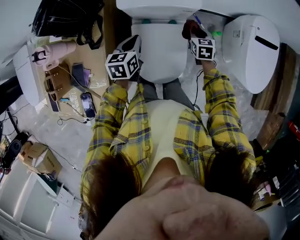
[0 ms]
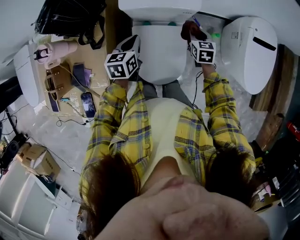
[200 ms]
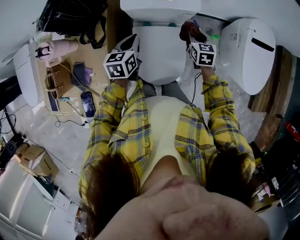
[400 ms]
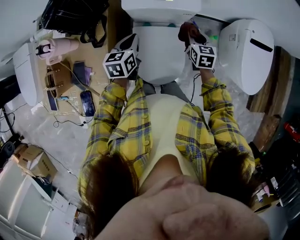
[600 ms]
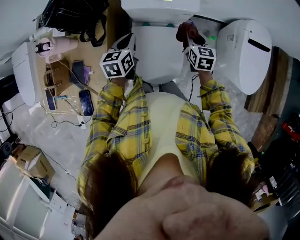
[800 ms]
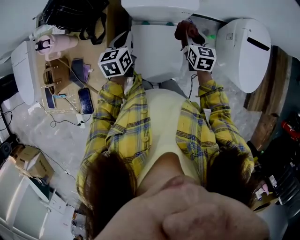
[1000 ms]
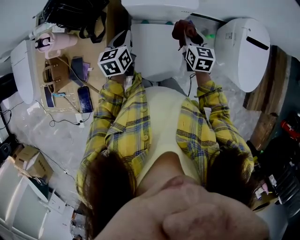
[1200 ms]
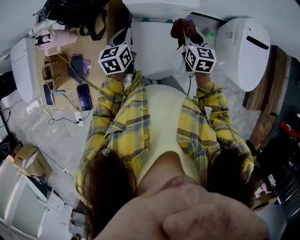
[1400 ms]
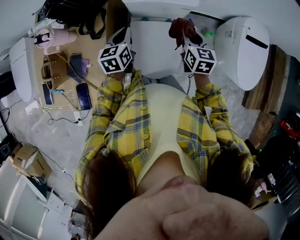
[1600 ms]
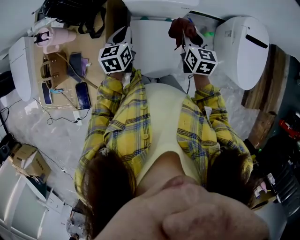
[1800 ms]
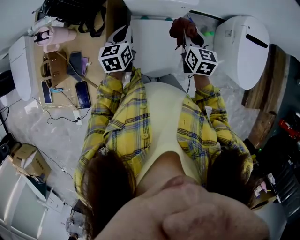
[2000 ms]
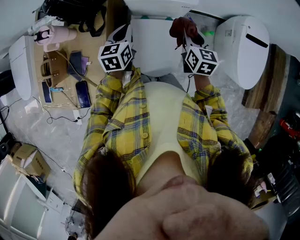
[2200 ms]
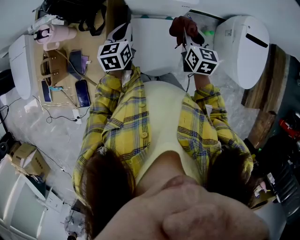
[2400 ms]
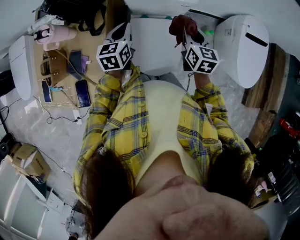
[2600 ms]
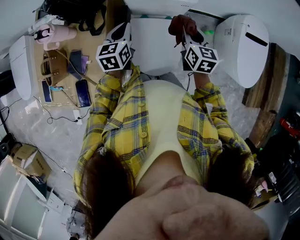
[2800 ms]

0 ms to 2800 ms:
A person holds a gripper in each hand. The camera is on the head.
0 ms to 1400 ms: The right gripper heads upward and backward, covering approximately 15 cm. Meanwhile the left gripper moves upward, approximately 5 cm.
1400 ms to 2800 ms: There are only small adjustments of the grippers.

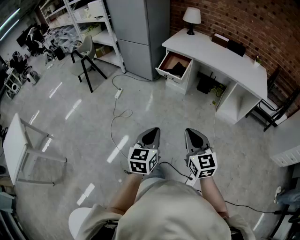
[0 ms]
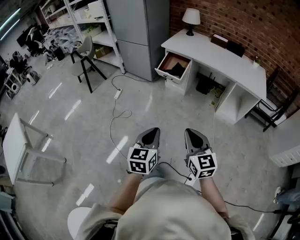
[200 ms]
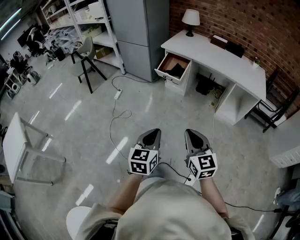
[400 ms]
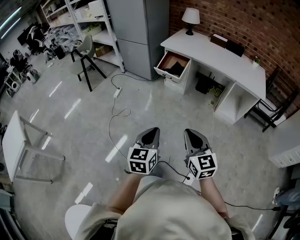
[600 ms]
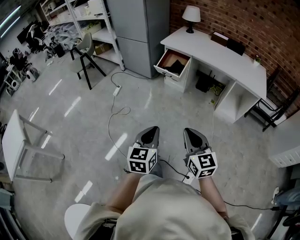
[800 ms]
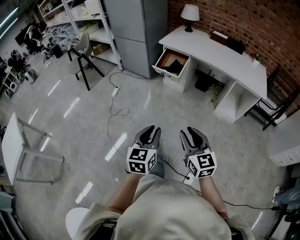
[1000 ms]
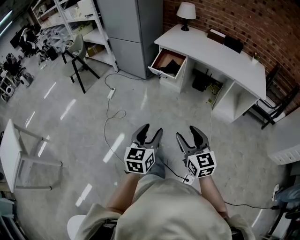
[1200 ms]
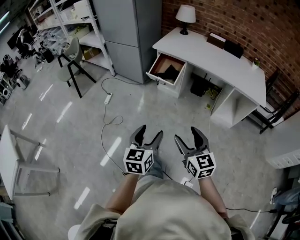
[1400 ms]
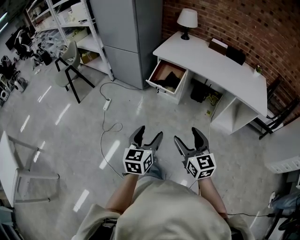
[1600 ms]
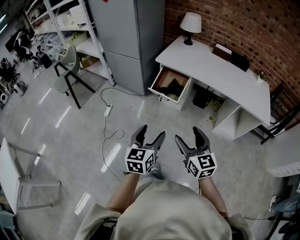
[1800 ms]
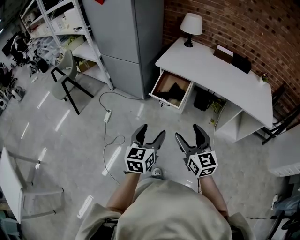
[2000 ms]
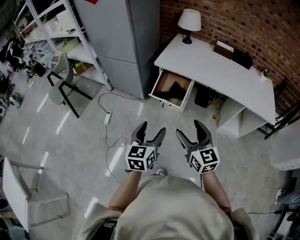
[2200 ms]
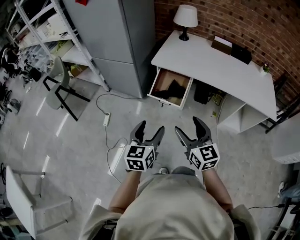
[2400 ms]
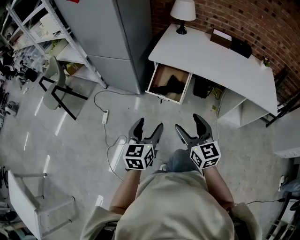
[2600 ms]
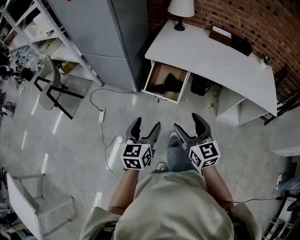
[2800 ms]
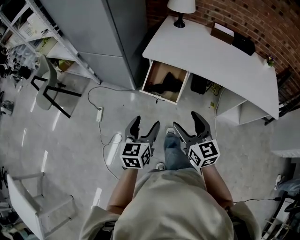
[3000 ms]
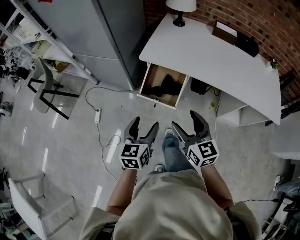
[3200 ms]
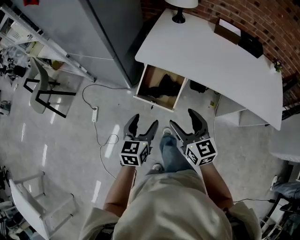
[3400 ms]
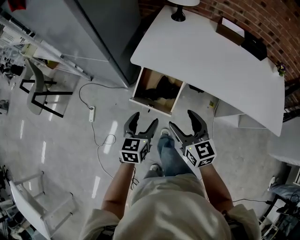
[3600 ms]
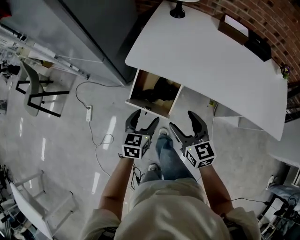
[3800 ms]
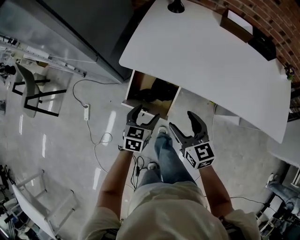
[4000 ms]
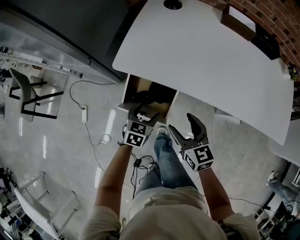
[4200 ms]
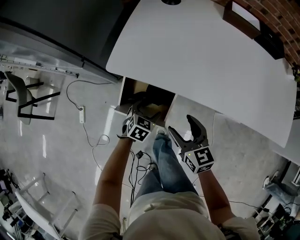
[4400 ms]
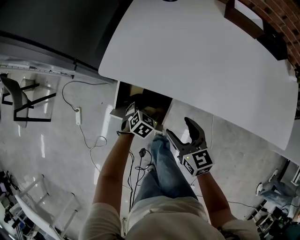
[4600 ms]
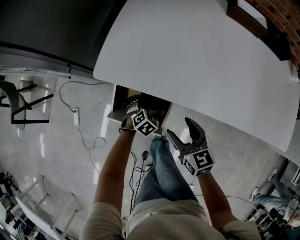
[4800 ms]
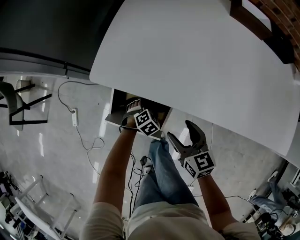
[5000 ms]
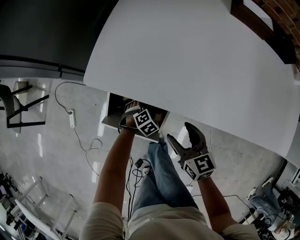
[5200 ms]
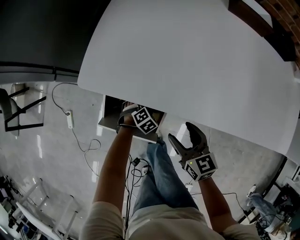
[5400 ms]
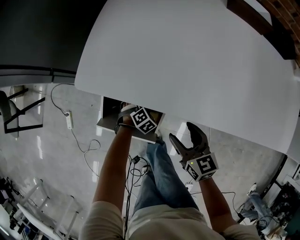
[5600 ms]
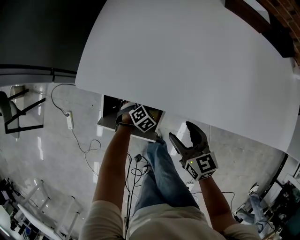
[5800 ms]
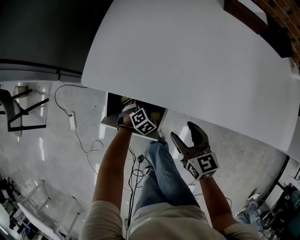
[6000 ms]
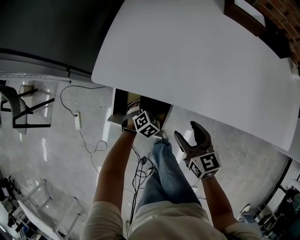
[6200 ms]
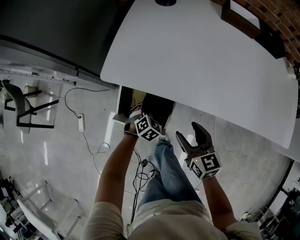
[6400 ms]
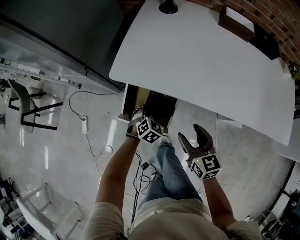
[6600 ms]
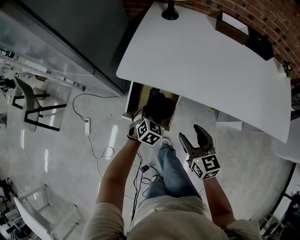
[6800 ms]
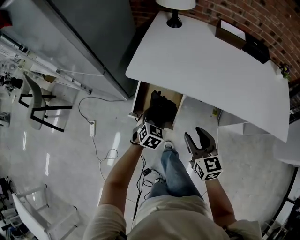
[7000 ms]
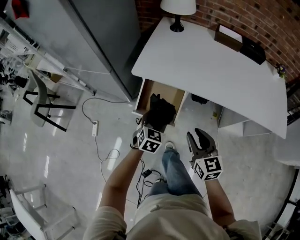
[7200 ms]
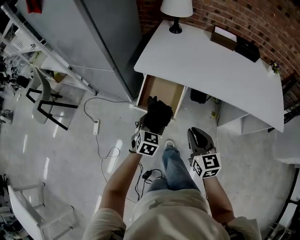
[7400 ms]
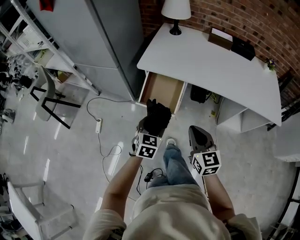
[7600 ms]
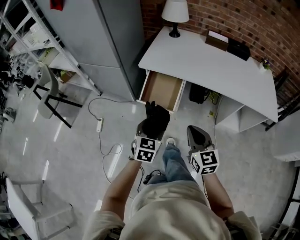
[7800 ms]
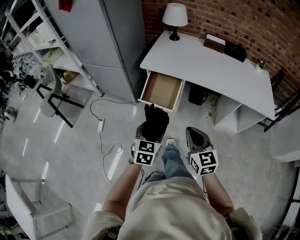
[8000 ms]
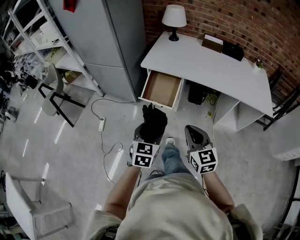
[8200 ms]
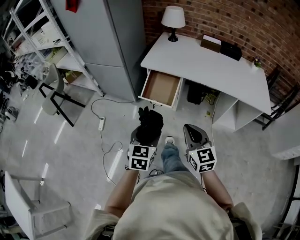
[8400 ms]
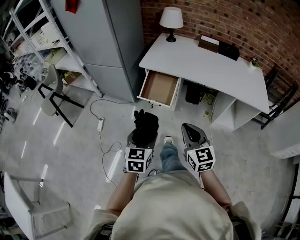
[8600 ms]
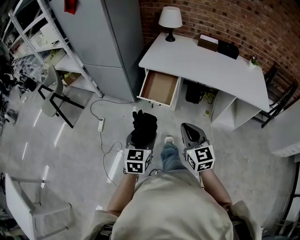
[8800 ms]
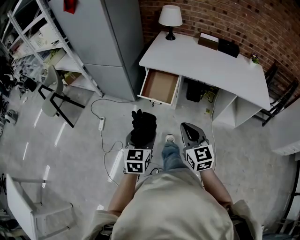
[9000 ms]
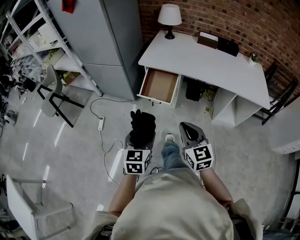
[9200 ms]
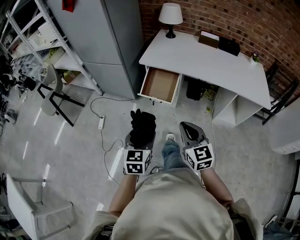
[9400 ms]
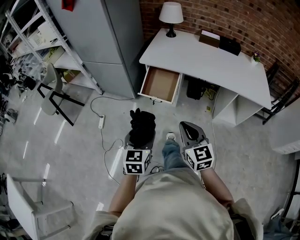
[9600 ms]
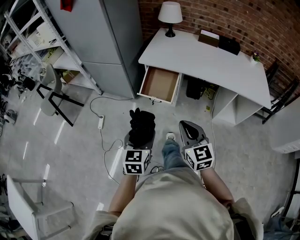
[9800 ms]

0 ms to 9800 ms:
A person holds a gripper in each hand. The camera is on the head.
0 ms to 1400 ms: Both grippers move forward, some 10 cm. The left gripper opens. Meanwhile the right gripper opens up.
1400 ms to 2800 ms: The grippers both shift forward by roughly 35 cm.
2800 ms to 4200 ms: The left gripper goes some 40 cm forward, downward and to the right, and turns by approximately 30 degrees. The right gripper heads forward and downward, covering about 35 cm.
4200 ms to 5600 ms: The left gripper goes roughly 25 cm downward, and changes its angle by approximately 50 degrees, while the right gripper goes some 15 cm downward and forward.
5600 ms to 7000 ms: The left gripper moves upward, about 30 cm, and swivels roughly 40 degrees, while the right gripper moves upward and backward, approximately 20 cm.
7000 ms to 8400 ms: Both grippers move backward and upward, roughly 40 cm. The right gripper closes its fingers. Meanwhile the left gripper rotates some 30 degrees.
8400 ms to 9800 ms: There are only small adjustments of the grippers.

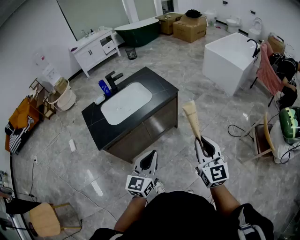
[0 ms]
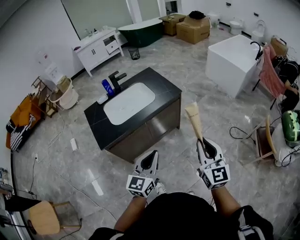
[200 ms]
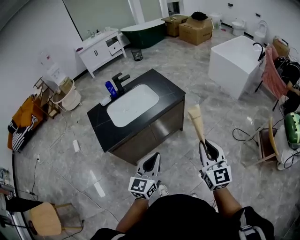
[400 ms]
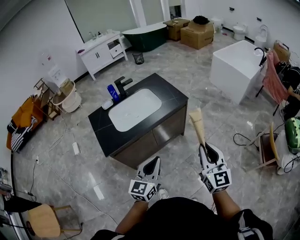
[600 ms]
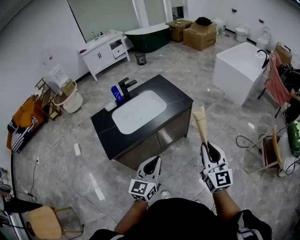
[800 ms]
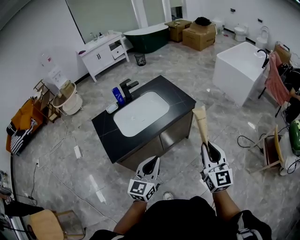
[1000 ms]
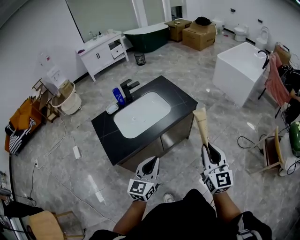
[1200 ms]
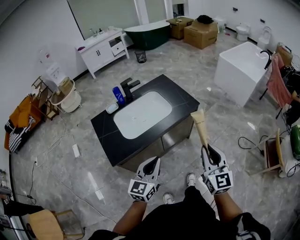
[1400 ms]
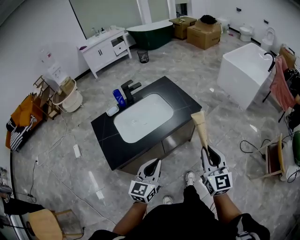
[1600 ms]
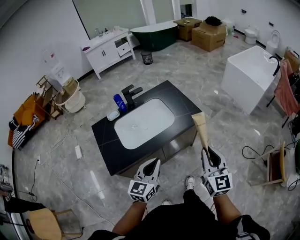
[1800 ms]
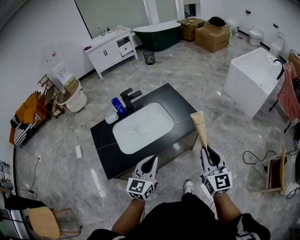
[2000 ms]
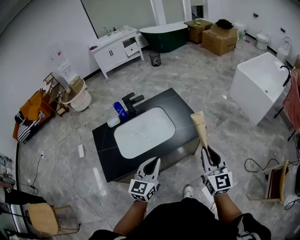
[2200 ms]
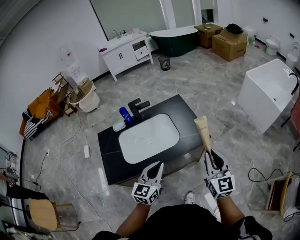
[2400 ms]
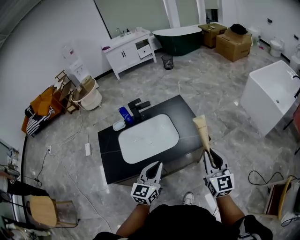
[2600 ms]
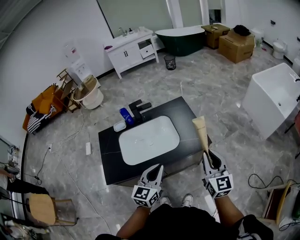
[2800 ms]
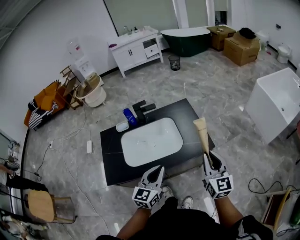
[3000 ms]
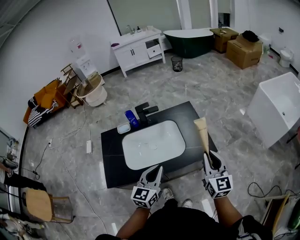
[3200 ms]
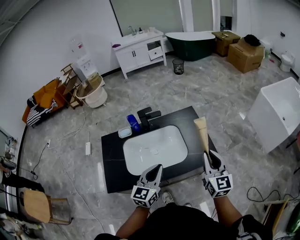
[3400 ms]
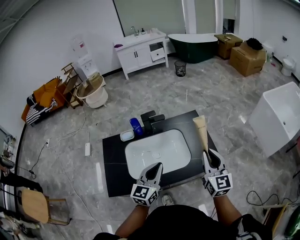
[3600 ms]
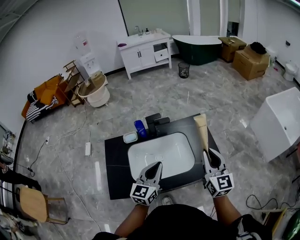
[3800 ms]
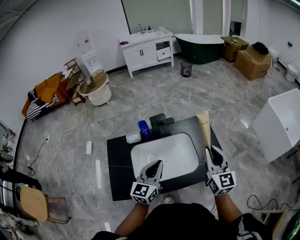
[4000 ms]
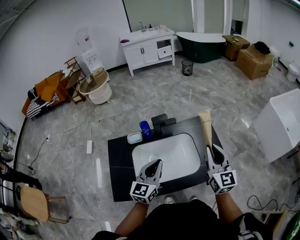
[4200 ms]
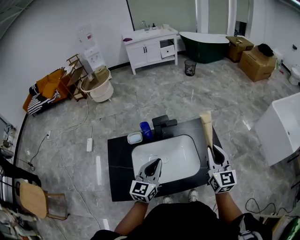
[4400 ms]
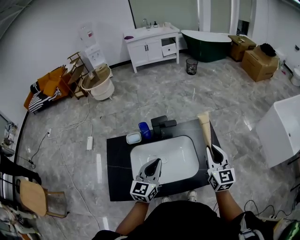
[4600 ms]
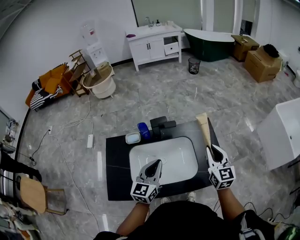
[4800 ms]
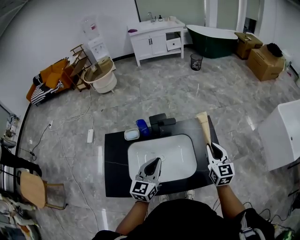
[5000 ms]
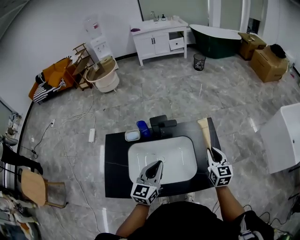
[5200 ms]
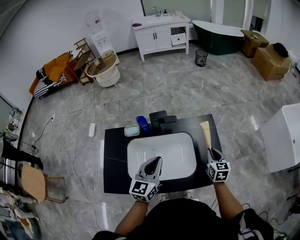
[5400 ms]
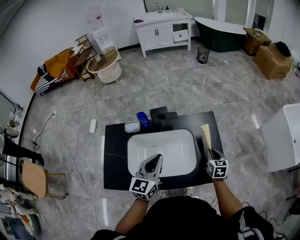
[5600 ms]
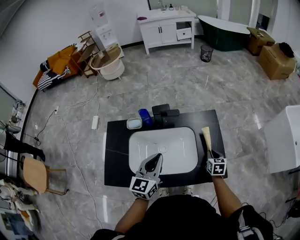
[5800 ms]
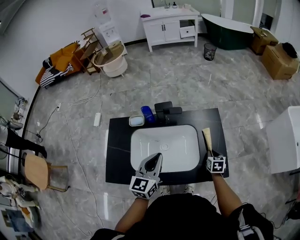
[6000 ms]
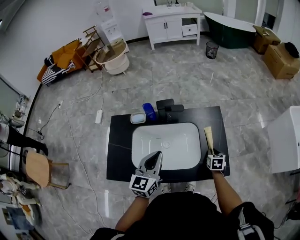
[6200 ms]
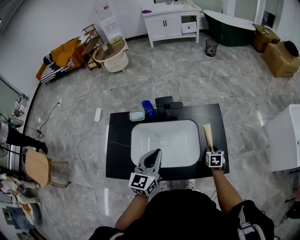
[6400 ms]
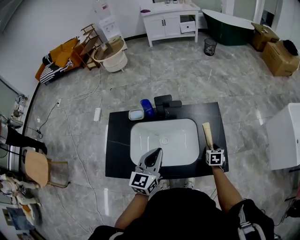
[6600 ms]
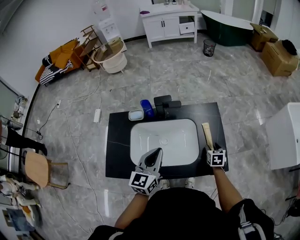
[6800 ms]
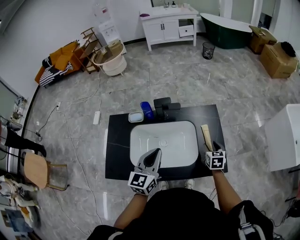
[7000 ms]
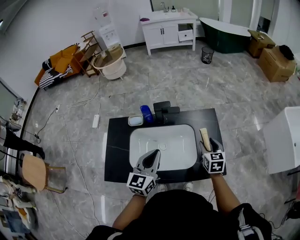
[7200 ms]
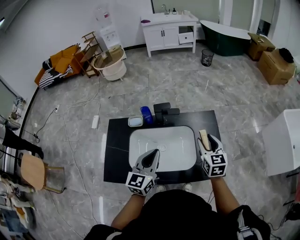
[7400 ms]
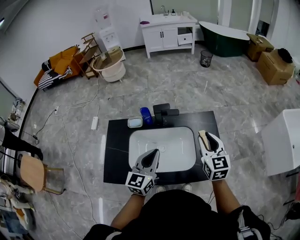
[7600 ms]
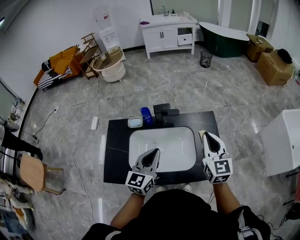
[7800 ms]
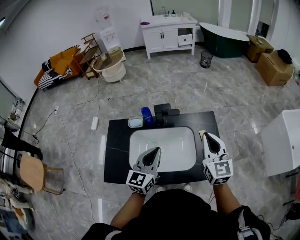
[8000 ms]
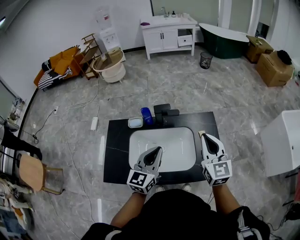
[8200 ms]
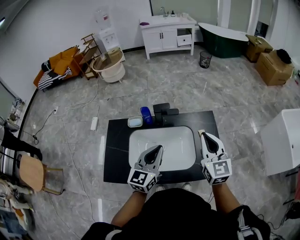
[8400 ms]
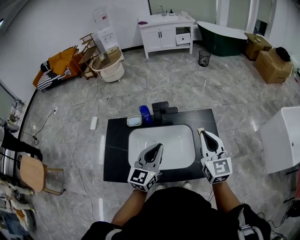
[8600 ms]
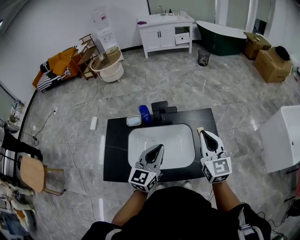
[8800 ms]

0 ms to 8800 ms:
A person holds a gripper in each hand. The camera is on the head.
0 ms to 1400 ms: The two grippers go roughly 15 cm to the left and forward.
1400 ms to 3000 ms: The two grippers go about 25 cm forward.
3000 ms to 4400 ms: Both grippers travel together forward and to the left, about 25 cm.
4400 ms to 5800 ms: The right gripper shifts some 30 cm downward, and tips its fingers downward by roughly 40 degrees.
5800 ms to 7400 ms: The right gripper goes approximately 20 cm upward and to the left, swivels some 30 degrees, and opens up.
7400 ms to 8800 ms: The right gripper is displaced upward by some 10 cm, and closes its fingers.

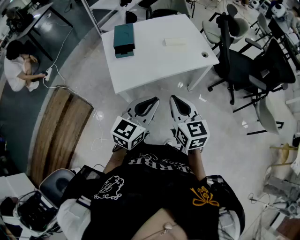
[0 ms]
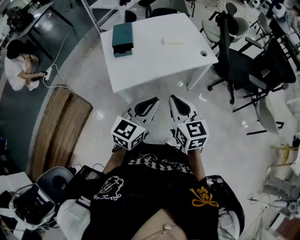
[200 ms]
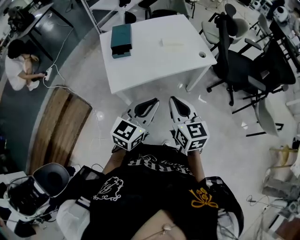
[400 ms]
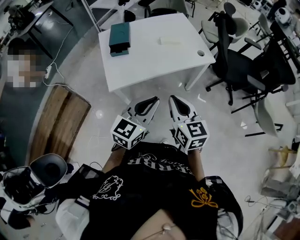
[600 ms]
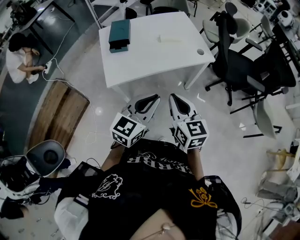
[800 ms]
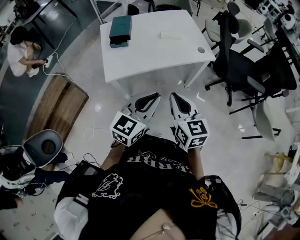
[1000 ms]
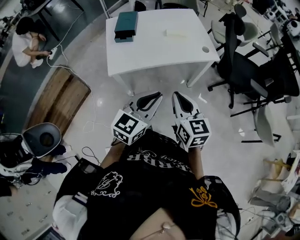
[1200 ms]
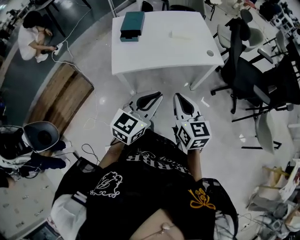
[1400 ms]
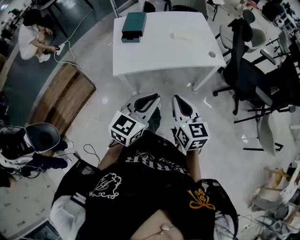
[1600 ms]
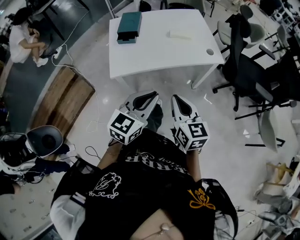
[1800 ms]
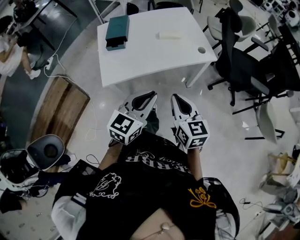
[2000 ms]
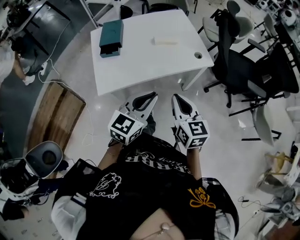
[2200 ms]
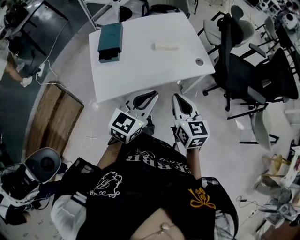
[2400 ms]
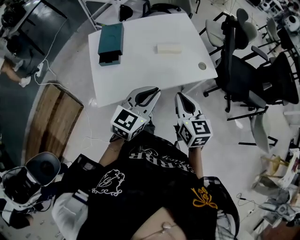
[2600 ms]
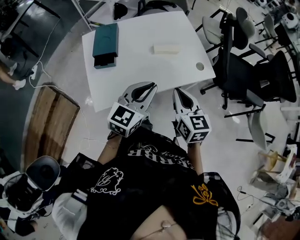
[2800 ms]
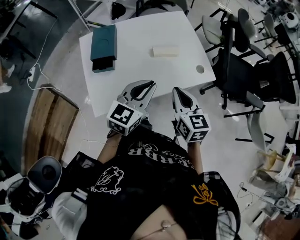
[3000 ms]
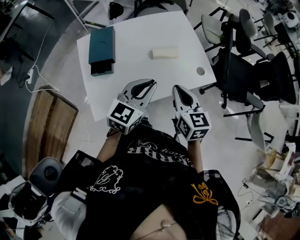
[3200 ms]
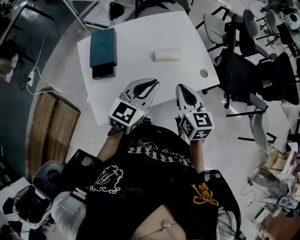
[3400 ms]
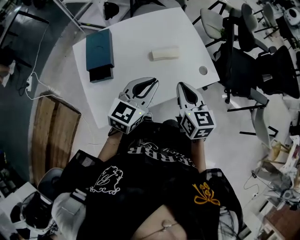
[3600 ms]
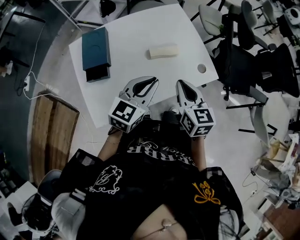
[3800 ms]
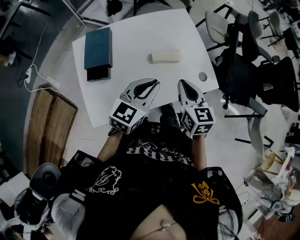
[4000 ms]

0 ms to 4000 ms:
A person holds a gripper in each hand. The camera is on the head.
0 ms to 1400 ms: Both grippers move to the right, some 10 cm.
1400 ms to 2600 ms: The grippers both shift forward by some 20 cm.
2600 ms to 4000 ms: Both grippers move forward, some 20 cm.
